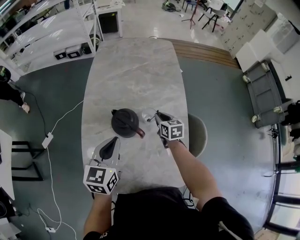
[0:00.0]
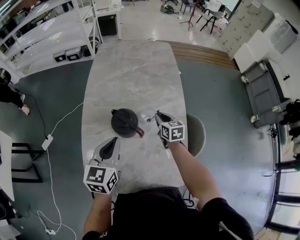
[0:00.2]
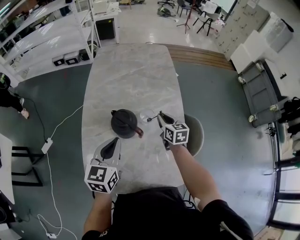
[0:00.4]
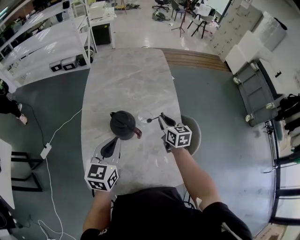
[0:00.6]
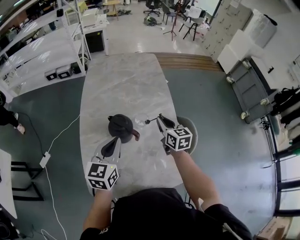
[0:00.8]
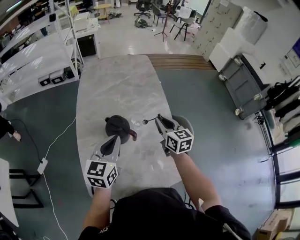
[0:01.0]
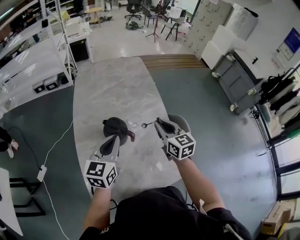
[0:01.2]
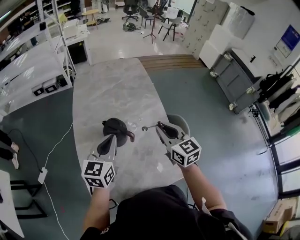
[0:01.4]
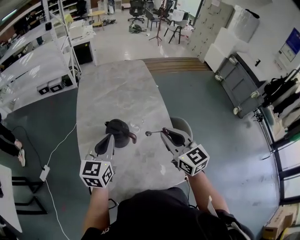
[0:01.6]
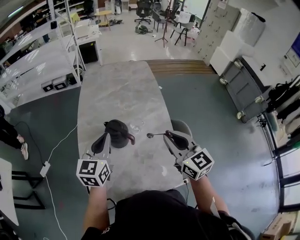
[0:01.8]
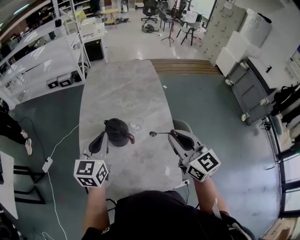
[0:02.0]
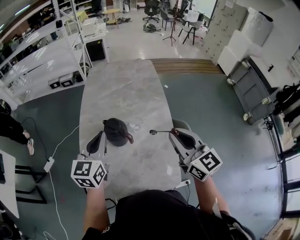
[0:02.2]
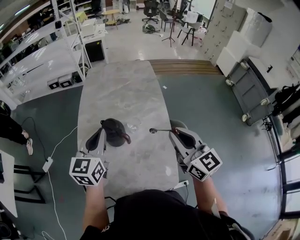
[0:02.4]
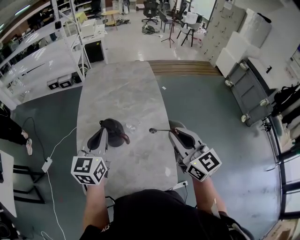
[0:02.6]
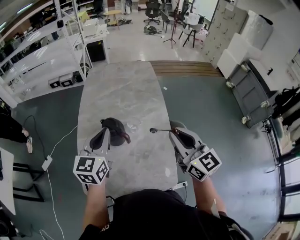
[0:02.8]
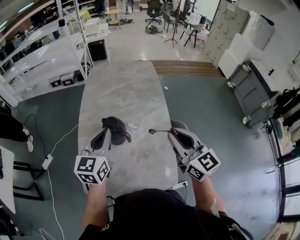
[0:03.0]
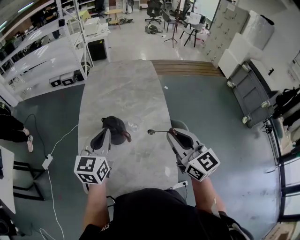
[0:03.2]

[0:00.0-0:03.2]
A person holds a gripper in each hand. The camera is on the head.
0:00.0 to 0:01.6: The right gripper heads upward and backward, covering about 30 cm, and swivels approximately 30 degrees. Meanwhile the left gripper travels upward by about 5 cm.
0:01.6 to 0:03.2: The right gripper is displaced to the right and upward by about 10 cm.

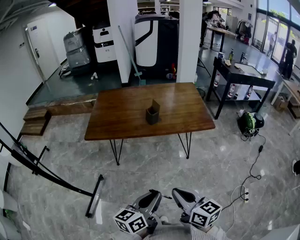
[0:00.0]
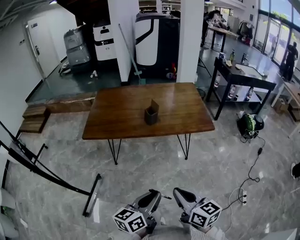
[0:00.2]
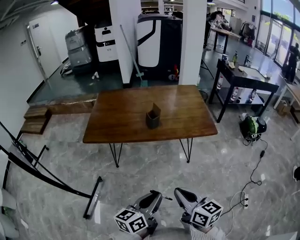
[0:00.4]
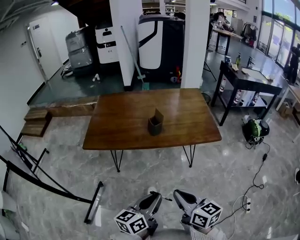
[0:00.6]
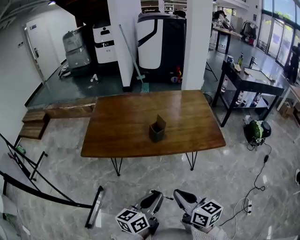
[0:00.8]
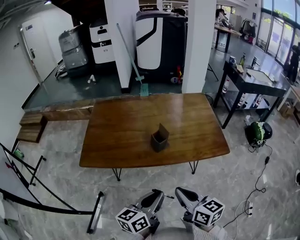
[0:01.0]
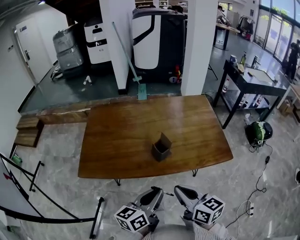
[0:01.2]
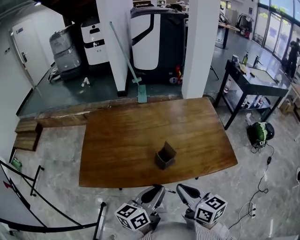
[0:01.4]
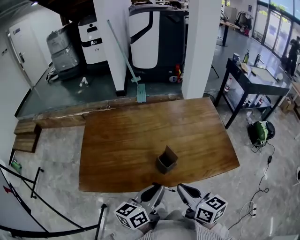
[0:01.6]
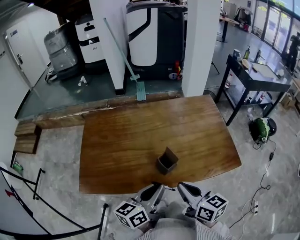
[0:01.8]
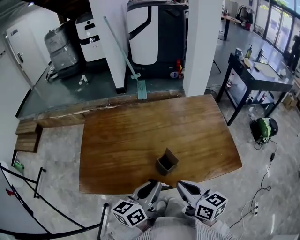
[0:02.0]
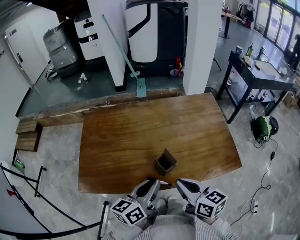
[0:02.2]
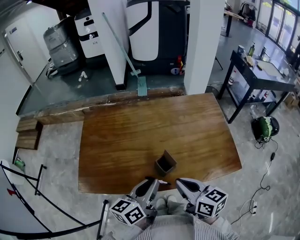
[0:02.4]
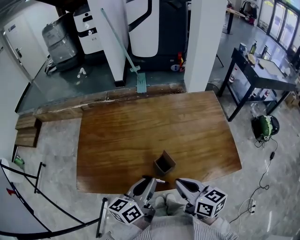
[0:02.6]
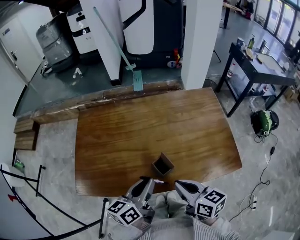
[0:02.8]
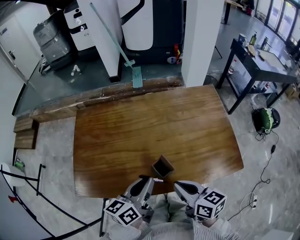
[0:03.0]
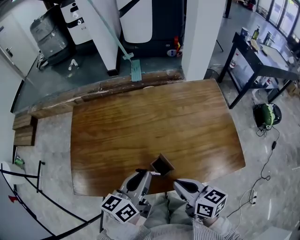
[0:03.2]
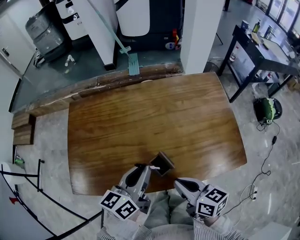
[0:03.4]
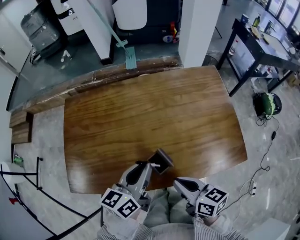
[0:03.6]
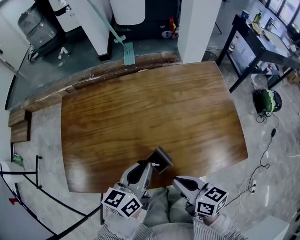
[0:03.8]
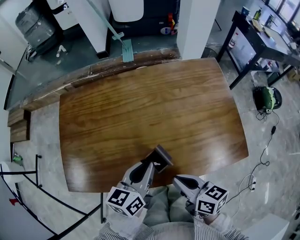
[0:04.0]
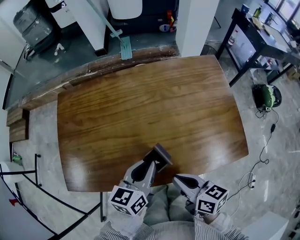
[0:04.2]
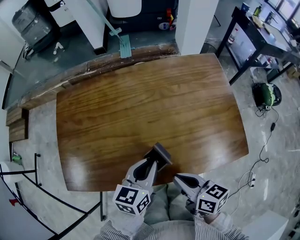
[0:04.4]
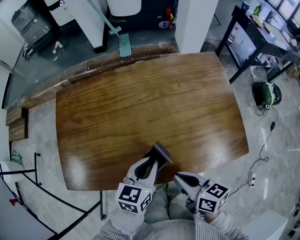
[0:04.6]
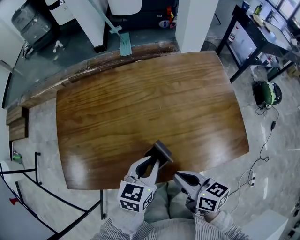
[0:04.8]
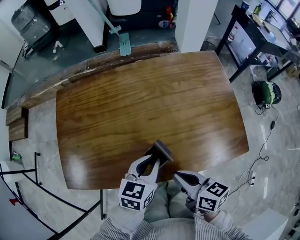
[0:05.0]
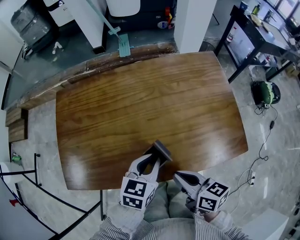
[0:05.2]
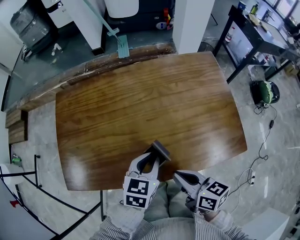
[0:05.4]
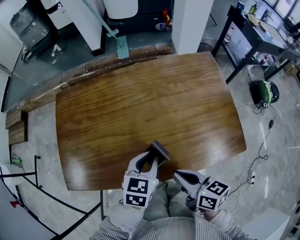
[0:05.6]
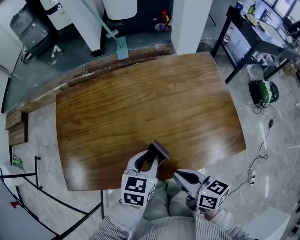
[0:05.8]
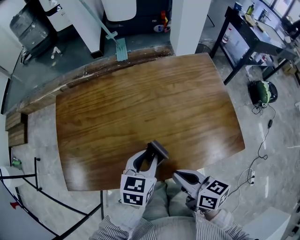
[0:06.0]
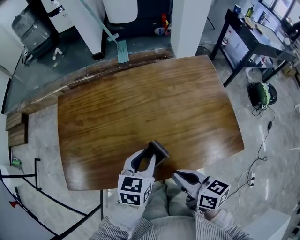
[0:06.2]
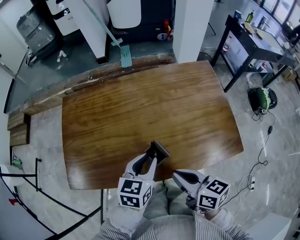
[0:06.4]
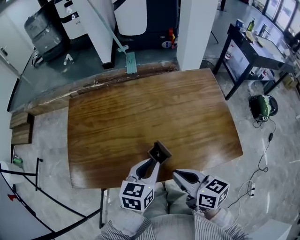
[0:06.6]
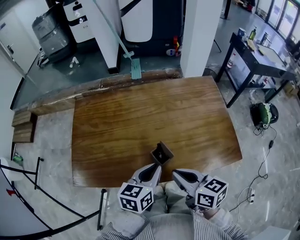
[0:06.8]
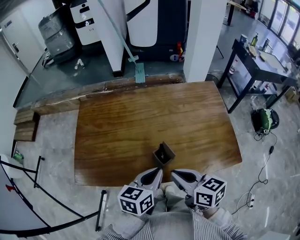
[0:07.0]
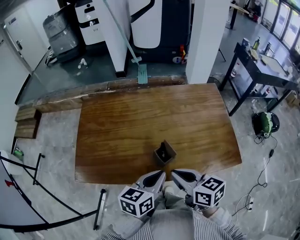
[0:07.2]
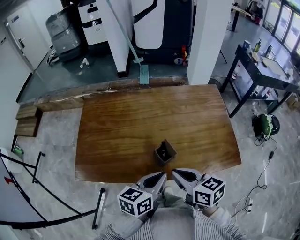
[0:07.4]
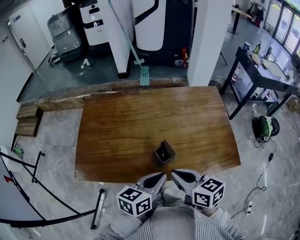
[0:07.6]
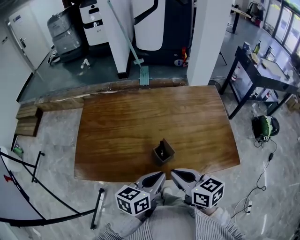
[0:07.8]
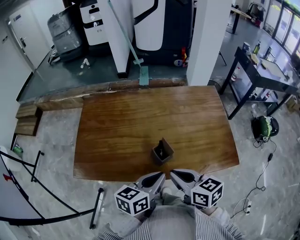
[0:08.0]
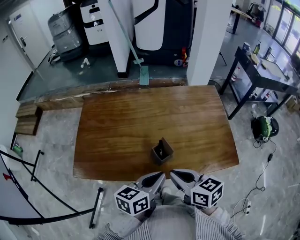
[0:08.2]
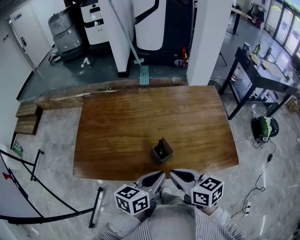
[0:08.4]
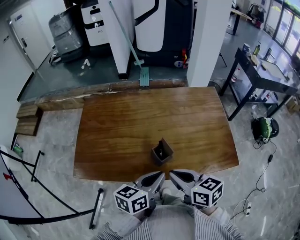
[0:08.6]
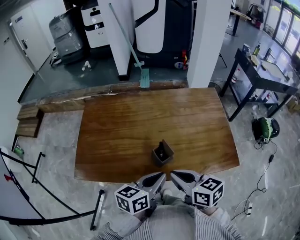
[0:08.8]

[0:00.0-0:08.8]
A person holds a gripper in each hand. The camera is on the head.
0:00.0 to 0:01.4: Both grippers move forward, some 40 cm.
0:01.4 to 0:03.0: The two grippers go about 10 cm forward.
0:03.0 to 0:04.4: Both grippers travel together downward, about 5 cm. The left gripper swivels some 20 degrees.
0:04.4 to 0:05.8: The grippers move only a little.
0:05.8 to 0:07.4: The left gripper is displaced backward and upward by roughly 15 cm, and changes its angle by approximately 30 degrees. Meanwhile the right gripper moves upward, approximately 5 cm.
0:07.4 to 0:08.8: The two grippers keep their place.

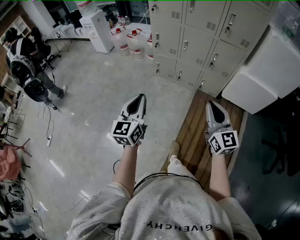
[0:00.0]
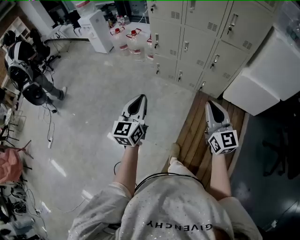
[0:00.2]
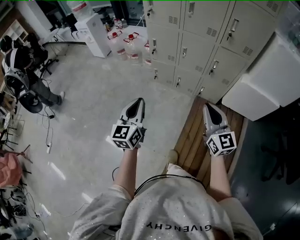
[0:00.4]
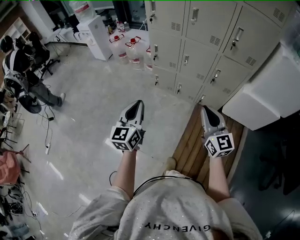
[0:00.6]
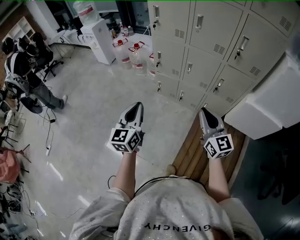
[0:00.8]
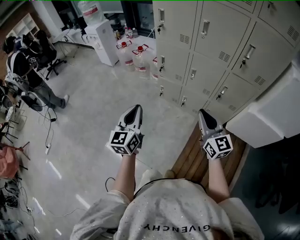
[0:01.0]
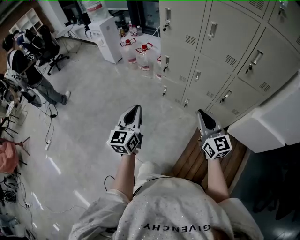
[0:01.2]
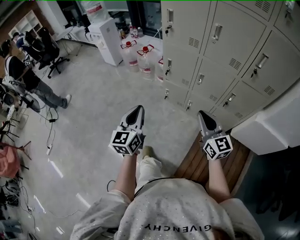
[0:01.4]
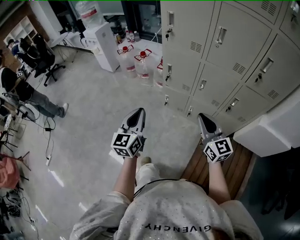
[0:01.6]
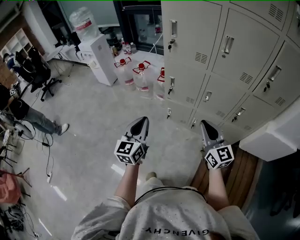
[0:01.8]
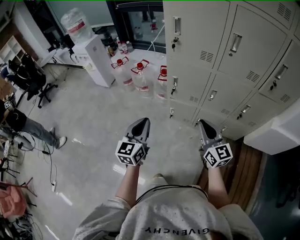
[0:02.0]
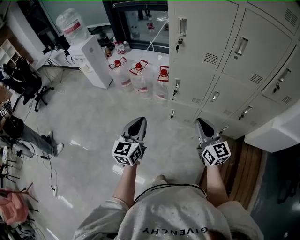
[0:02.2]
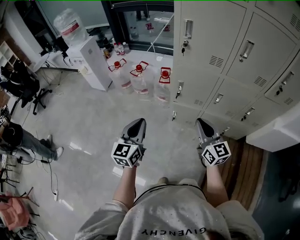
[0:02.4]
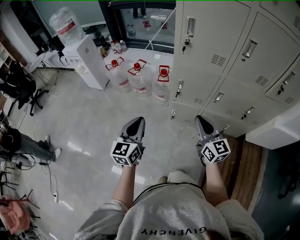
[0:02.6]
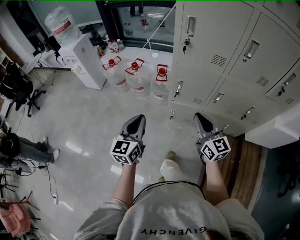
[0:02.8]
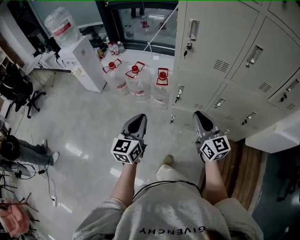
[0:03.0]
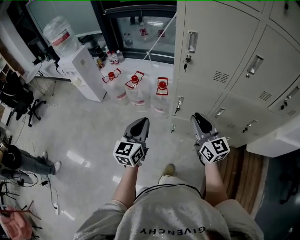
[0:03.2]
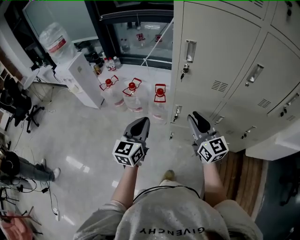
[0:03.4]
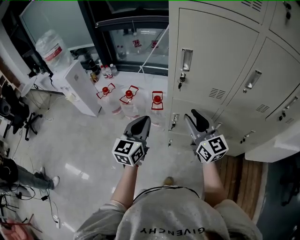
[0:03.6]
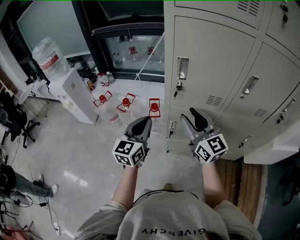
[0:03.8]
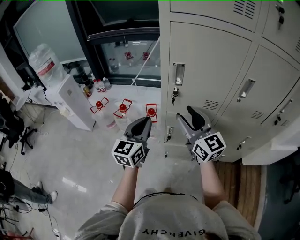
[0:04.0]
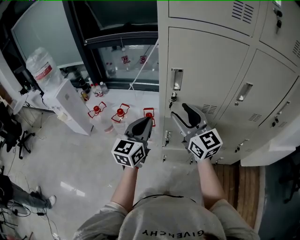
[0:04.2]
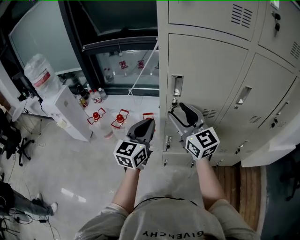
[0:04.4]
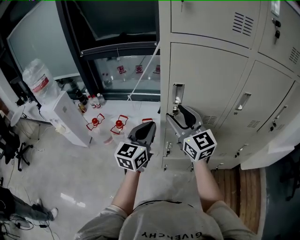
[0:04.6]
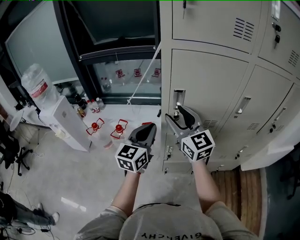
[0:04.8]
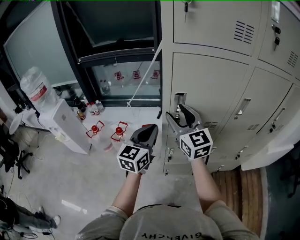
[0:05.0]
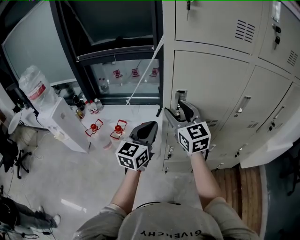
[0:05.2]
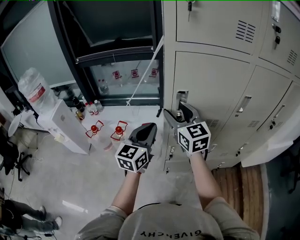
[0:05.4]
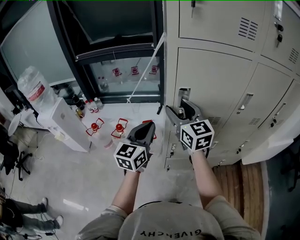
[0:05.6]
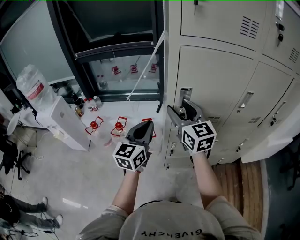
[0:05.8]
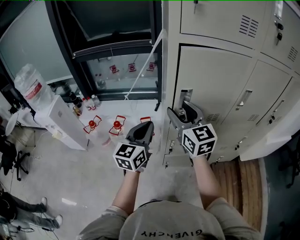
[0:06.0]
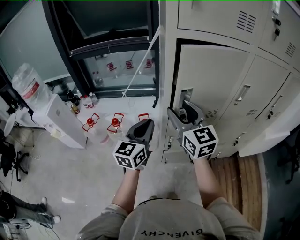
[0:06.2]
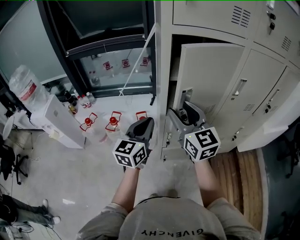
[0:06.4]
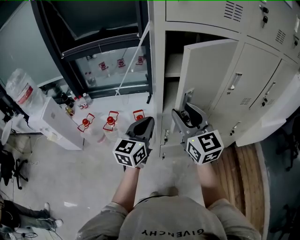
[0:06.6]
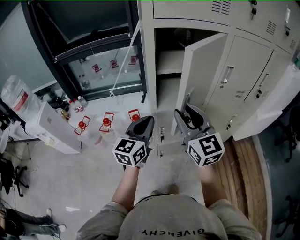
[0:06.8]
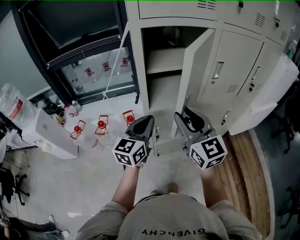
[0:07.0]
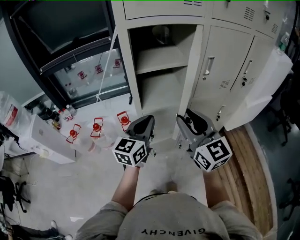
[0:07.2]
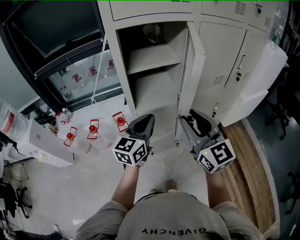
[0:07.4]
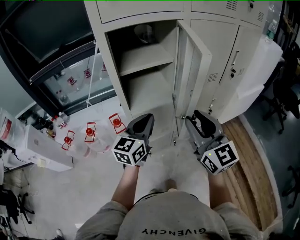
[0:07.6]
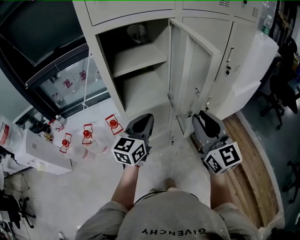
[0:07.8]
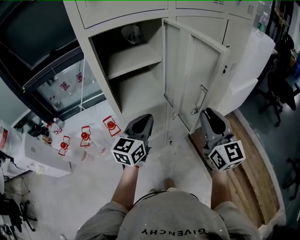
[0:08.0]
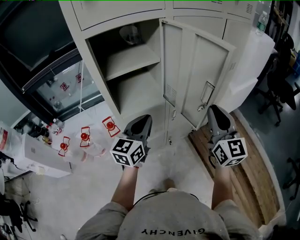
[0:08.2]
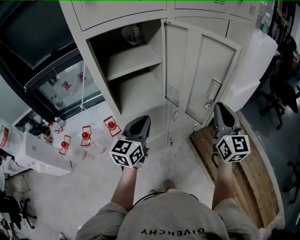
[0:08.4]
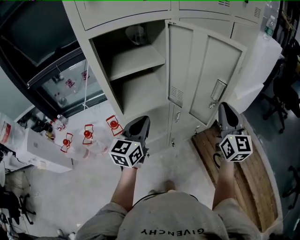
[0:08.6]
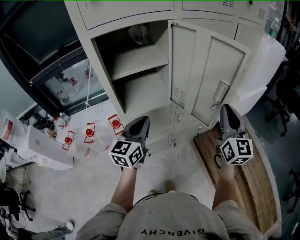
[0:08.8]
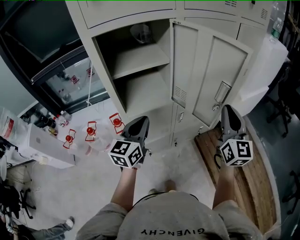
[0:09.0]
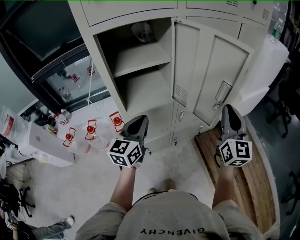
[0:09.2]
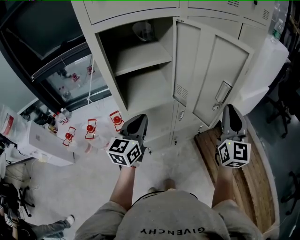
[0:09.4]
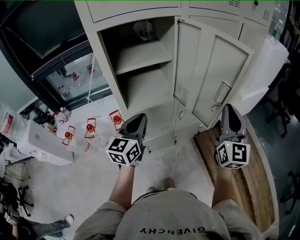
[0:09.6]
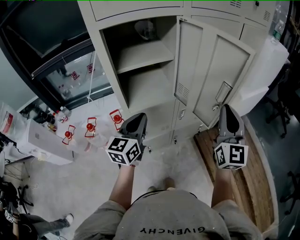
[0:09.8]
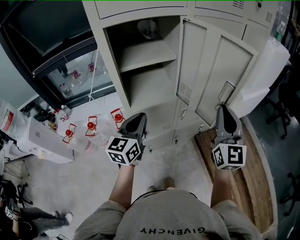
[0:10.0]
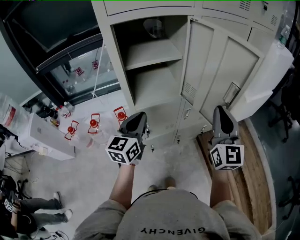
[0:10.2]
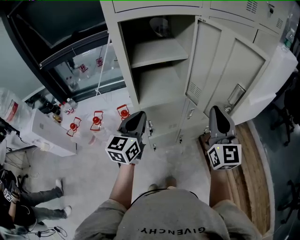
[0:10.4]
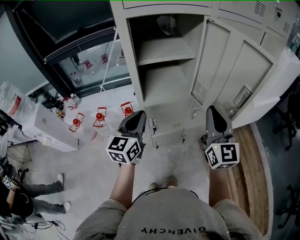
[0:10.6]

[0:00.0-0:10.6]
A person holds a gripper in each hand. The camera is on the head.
0:00.0 to 0:01.6: The two grippers go roughly 35 cm forward.
0:01.6 to 0:03.0: The grippers both shift forward and to the left by some 30 cm.
0:03.0 to 0:04.6: The grippers both shift forward and upward by about 30 cm. The left gripper rotates approximately 20 degrees, while the right gripper opens its fingers.
0:04.6 to 0:06.0: The grippers move only a little.
0:06.0 to 0:07.6: The left gripper shifts approximately 20 cm to the right, and swivels some 20 degrees, while the right gripper travels to the right and backward by roughly 25 cm, rotates some 20 degrees, and closes its fingers.
0:07.6 to 0:09.0: The right gripper moves to the right and forward, roughly 20 cm, changes its angle by roughly 20 degrees, and closes.
0:09.0 to 0:10.6: The left gripper is displaced to the left by some 10 cm. The right gripper is displaced to the left by roughly 15 cm.

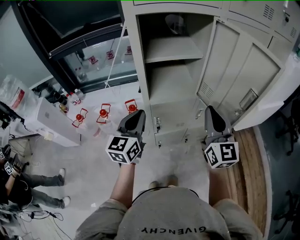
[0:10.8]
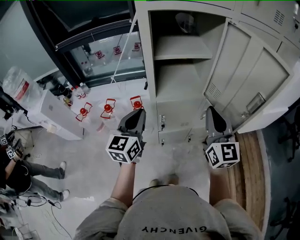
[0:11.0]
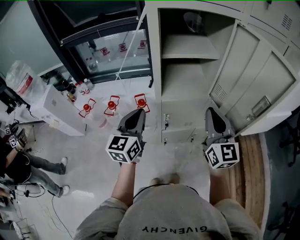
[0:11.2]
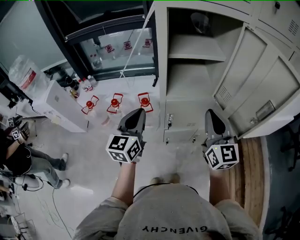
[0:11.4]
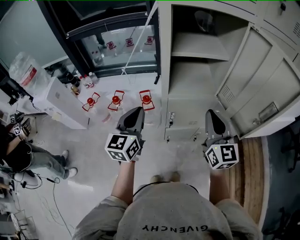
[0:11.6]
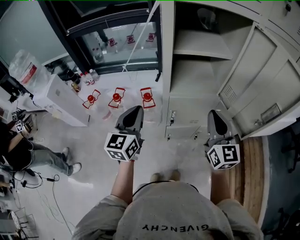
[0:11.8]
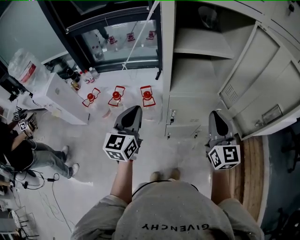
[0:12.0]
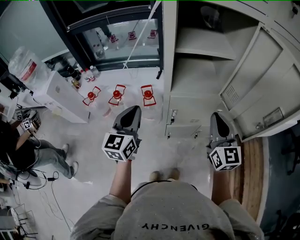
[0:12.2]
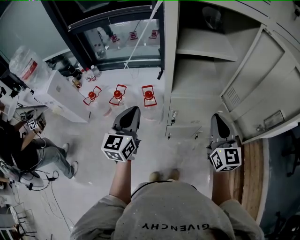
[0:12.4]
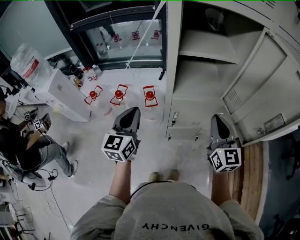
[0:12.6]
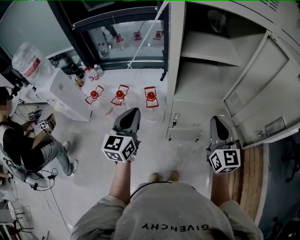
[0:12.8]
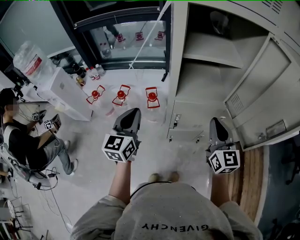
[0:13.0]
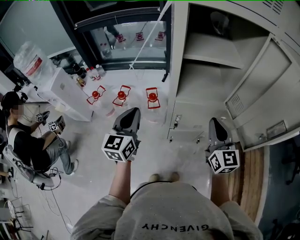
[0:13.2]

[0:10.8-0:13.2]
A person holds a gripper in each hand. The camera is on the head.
0:10.8 to 0:12.0: The right gripper travels downward and to the left by roughly 10 cm, while the left gripper shifts approximately 10 cm to the left.
0:12.0 to 0:13.2: The grippers make only small movements.
